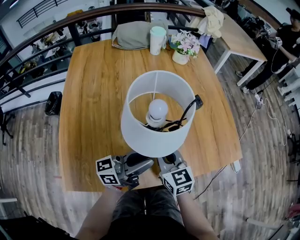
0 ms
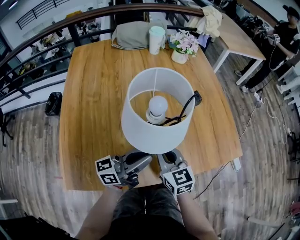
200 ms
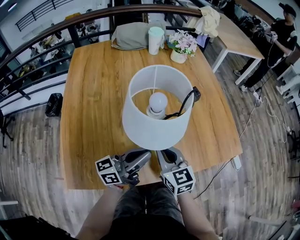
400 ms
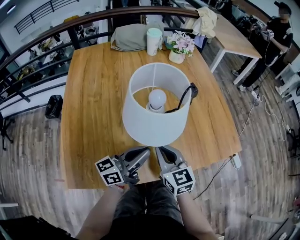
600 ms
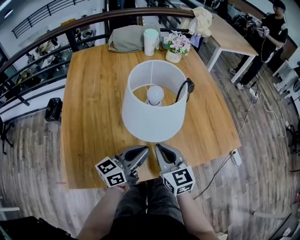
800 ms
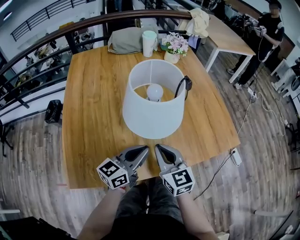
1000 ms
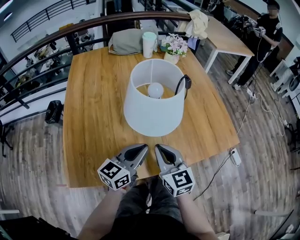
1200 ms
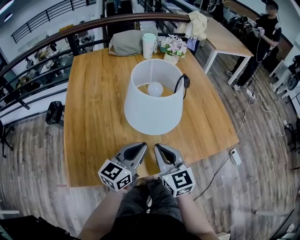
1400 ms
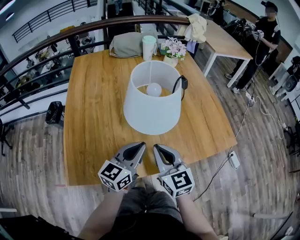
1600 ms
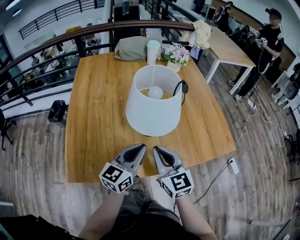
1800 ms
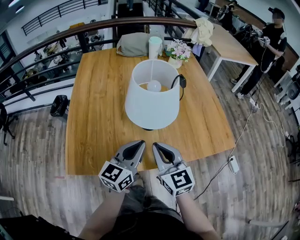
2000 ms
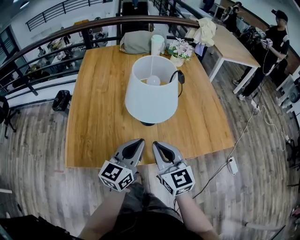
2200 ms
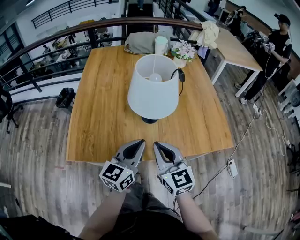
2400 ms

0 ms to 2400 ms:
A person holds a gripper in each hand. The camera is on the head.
0 ms to 1200 ms: The right gripper goes roughly 5 cm backward. Meanwhile the left gripper turns by approximately 40 degrees, and closes.
1200 ms to 2400 ms: The two grippers go some 10 cm backward and upward.

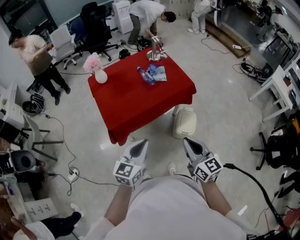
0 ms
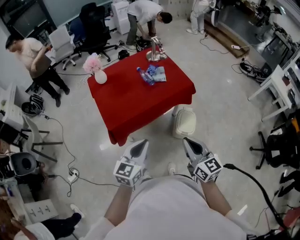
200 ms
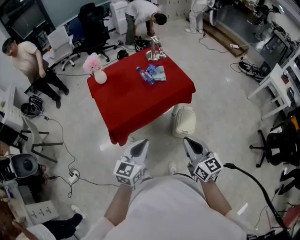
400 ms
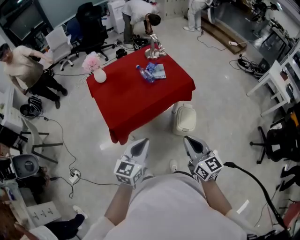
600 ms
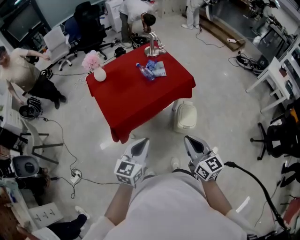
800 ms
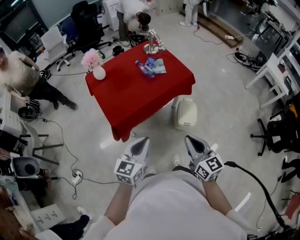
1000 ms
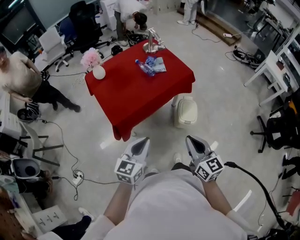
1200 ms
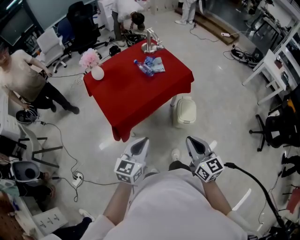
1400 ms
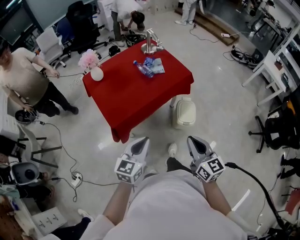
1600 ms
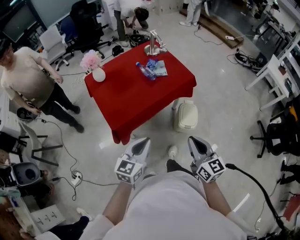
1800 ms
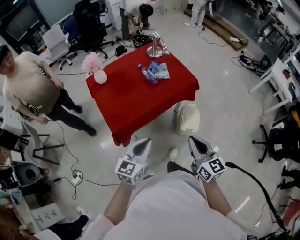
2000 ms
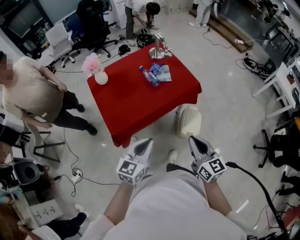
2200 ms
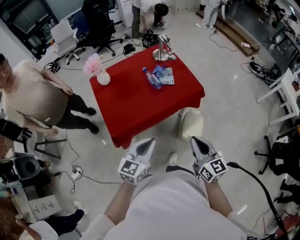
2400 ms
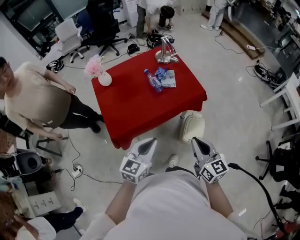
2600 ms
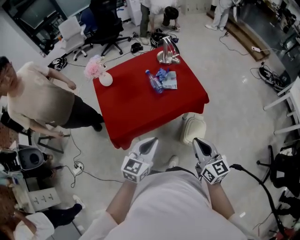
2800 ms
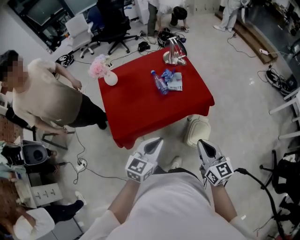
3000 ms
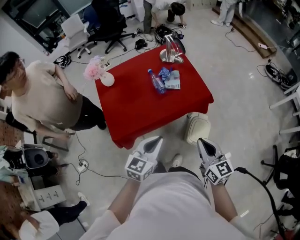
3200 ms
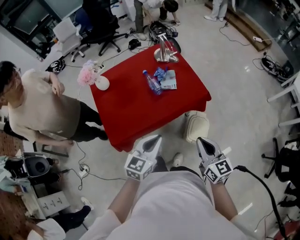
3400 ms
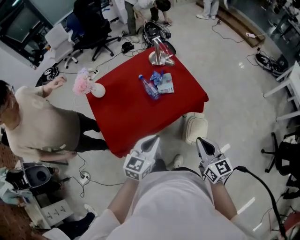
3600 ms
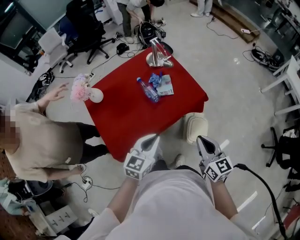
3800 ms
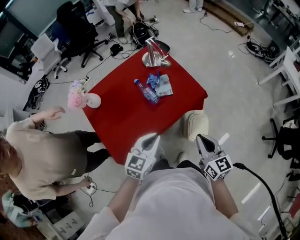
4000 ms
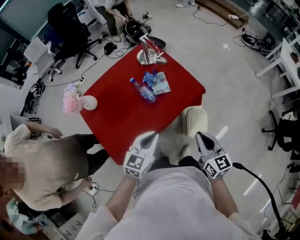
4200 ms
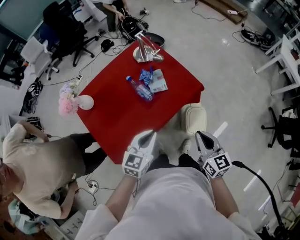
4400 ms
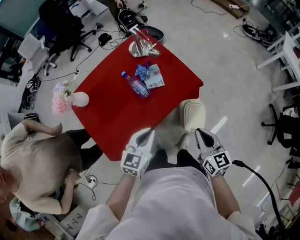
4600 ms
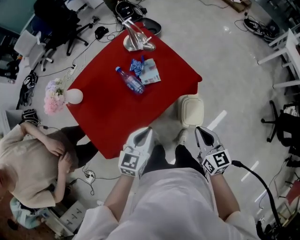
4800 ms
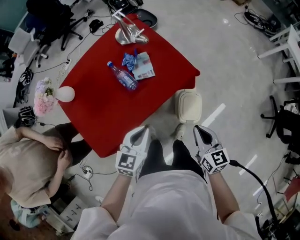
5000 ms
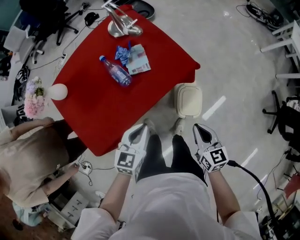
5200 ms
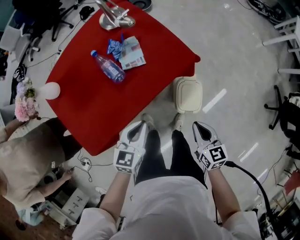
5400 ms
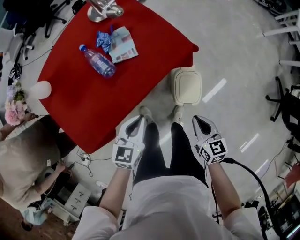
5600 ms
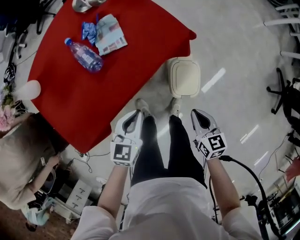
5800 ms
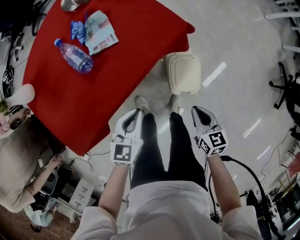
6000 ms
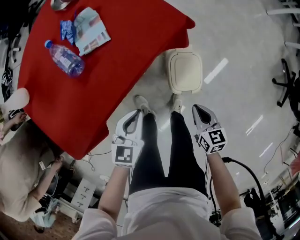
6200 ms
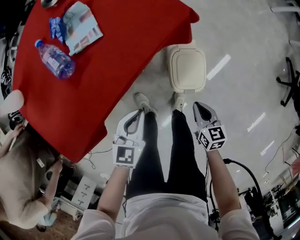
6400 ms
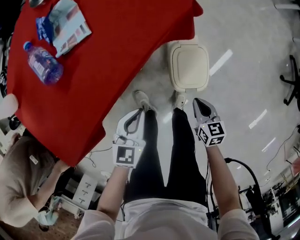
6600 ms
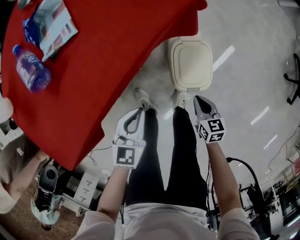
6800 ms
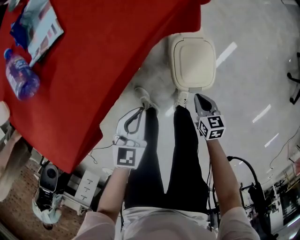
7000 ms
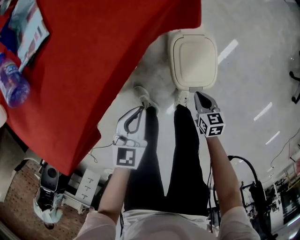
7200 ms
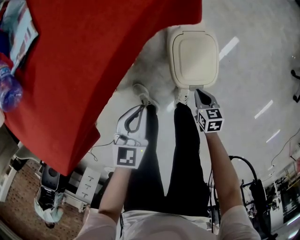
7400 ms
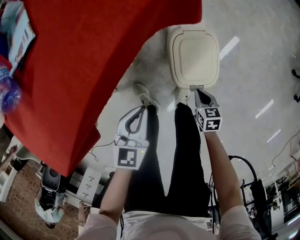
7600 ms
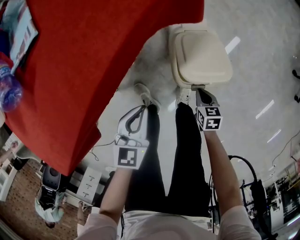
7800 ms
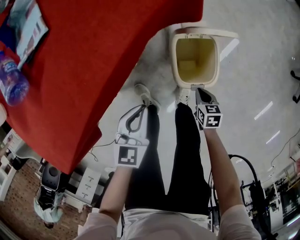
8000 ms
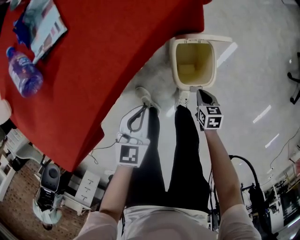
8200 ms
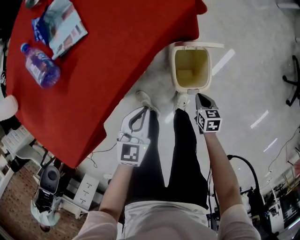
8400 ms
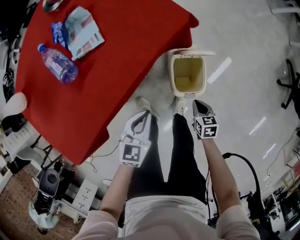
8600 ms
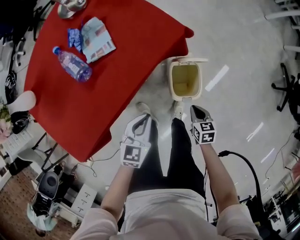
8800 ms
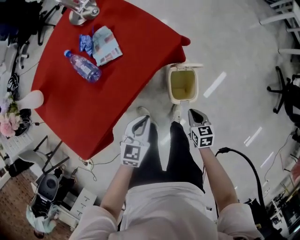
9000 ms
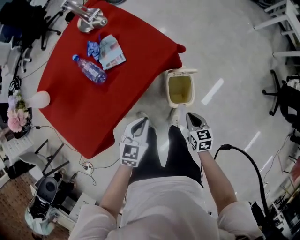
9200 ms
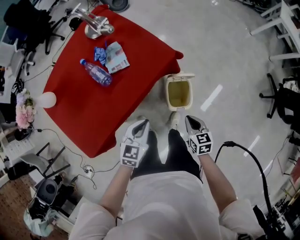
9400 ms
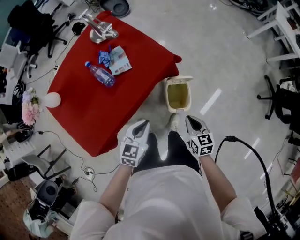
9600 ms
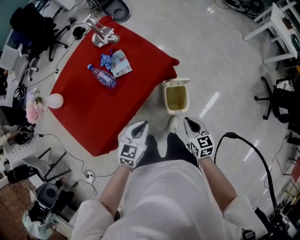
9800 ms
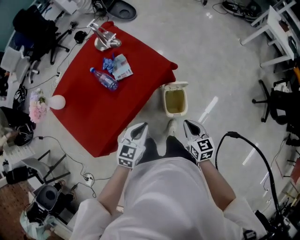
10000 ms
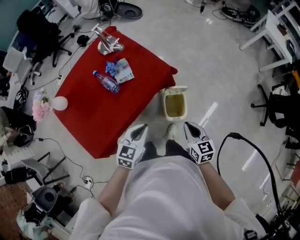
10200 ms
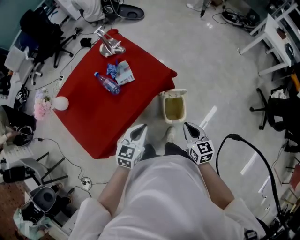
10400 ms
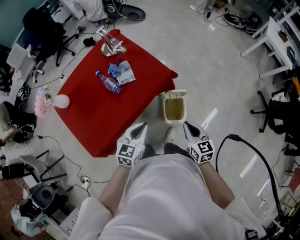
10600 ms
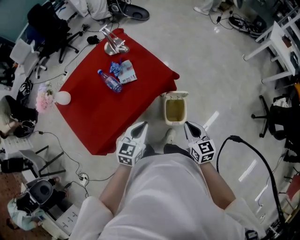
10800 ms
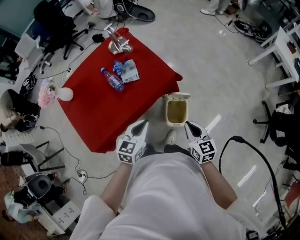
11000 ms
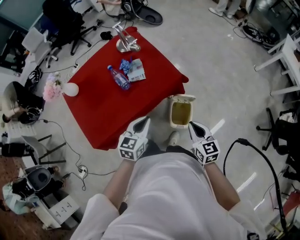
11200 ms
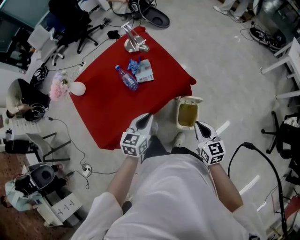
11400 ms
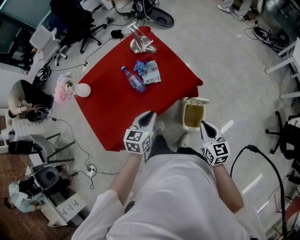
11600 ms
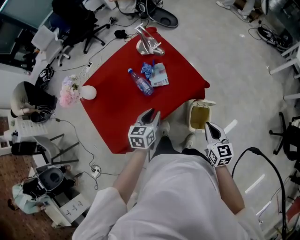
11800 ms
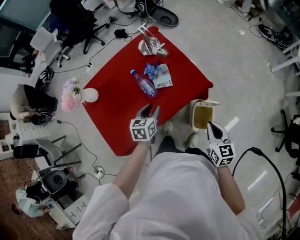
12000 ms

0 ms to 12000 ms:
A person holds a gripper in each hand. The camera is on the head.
0 ms to 1600 ms: The right gripper ends up approximately 5 cm from where it was. Meanwhile the left gripper heads to the left, covering roughly 5 cm.
1600 ms to 3000 ms: The two grippers go about 20 cm forward and to the right.
3000 ms to 4400 ms: The right gripper goes some 10 cm forward, and rotates about 20 degrees, while the left gripper is displaced forward by about 15 cm.
4400 ms to 6000 ms: Both grippers move downward and to the right, some 30 cm. The right gripper swivels some 20 degrees.
6000 ms to 7600 ms: The right gripper heads downward, covering roughly 35 cm, and changes its angle by about 20 degrees. Meanwhile the left gripper heads downward, covering roughly 20 cm.
7600 ms to 9000 ms: The two grippers go approximately 20 cm upward.
9000 ms to 10400 ms: Both grippers move upward, roughly 25 cm. The right gripper swivels about 20 degrees.
10400 ms to 12000 ms: The right gripper travels forward and to the left by roughly 10 cm; the left gripper is displaced forward and to the left by approximately 20 cm, changes its angle by roughly 30 degrees, and opens up.

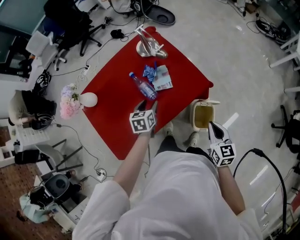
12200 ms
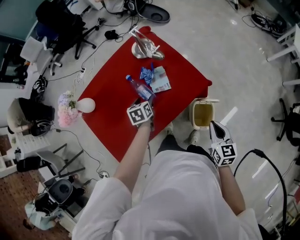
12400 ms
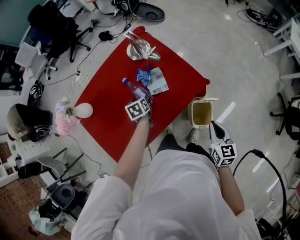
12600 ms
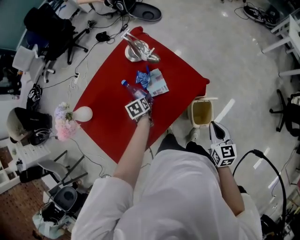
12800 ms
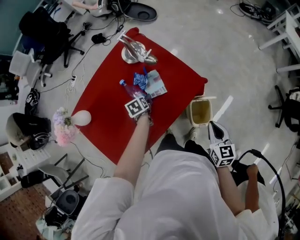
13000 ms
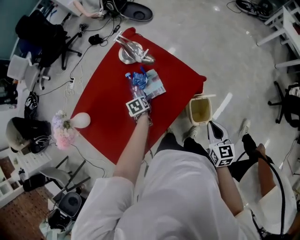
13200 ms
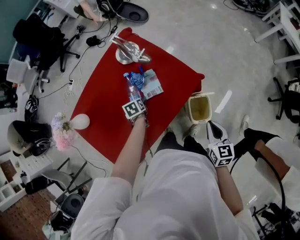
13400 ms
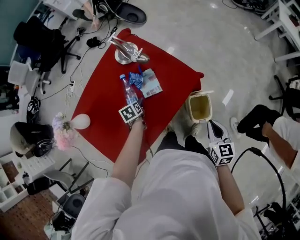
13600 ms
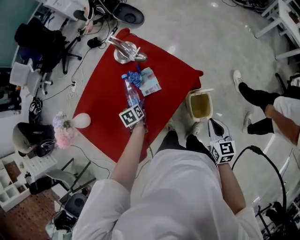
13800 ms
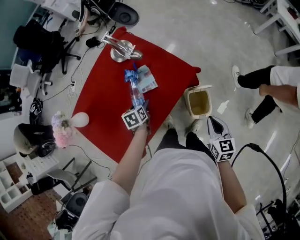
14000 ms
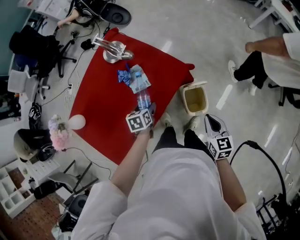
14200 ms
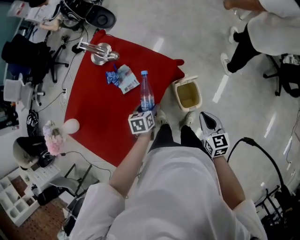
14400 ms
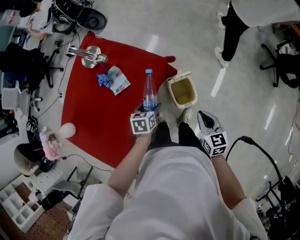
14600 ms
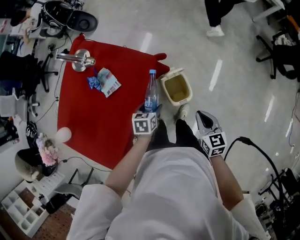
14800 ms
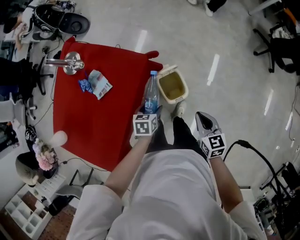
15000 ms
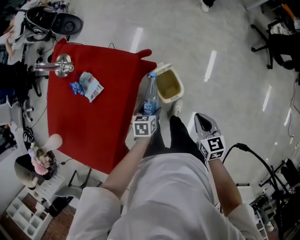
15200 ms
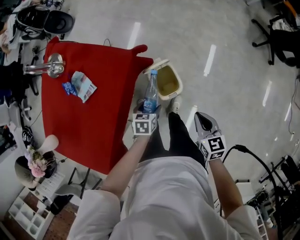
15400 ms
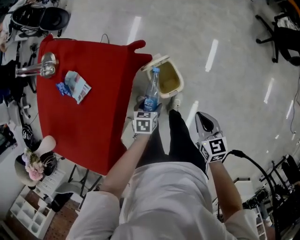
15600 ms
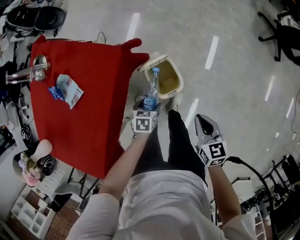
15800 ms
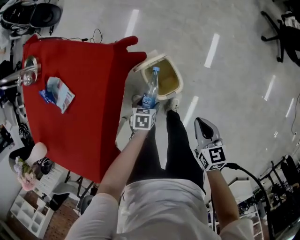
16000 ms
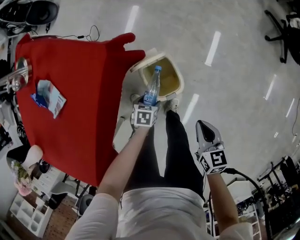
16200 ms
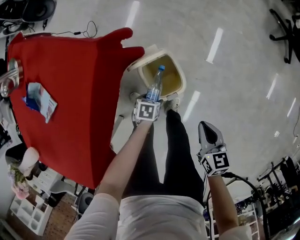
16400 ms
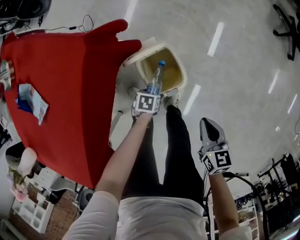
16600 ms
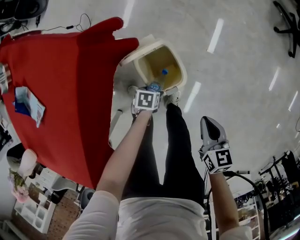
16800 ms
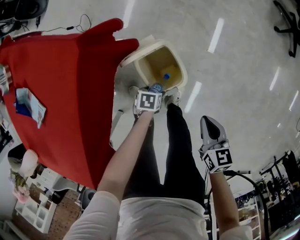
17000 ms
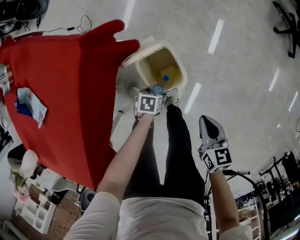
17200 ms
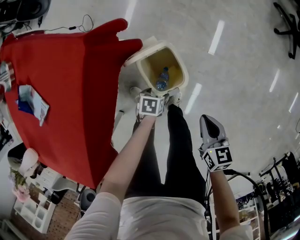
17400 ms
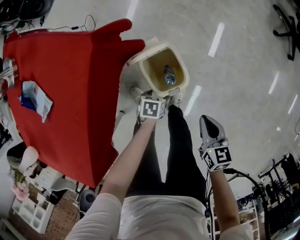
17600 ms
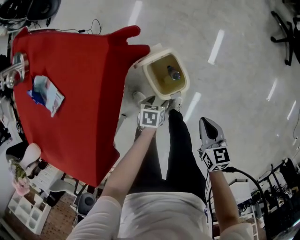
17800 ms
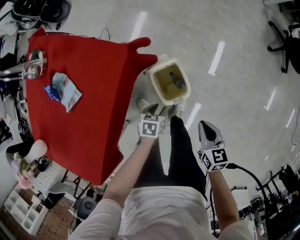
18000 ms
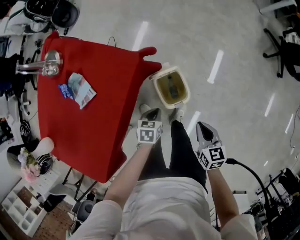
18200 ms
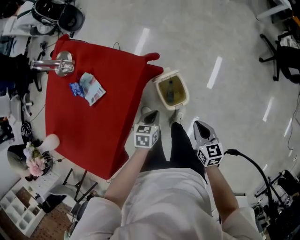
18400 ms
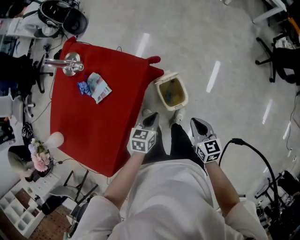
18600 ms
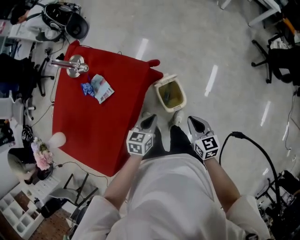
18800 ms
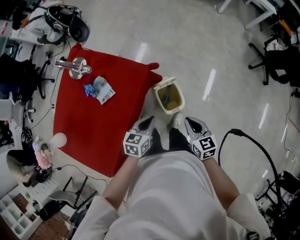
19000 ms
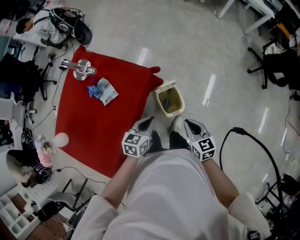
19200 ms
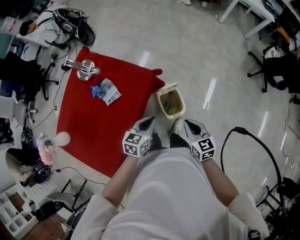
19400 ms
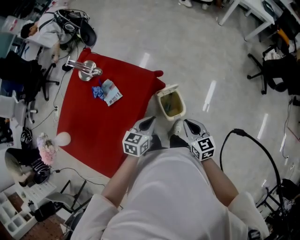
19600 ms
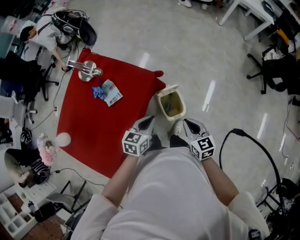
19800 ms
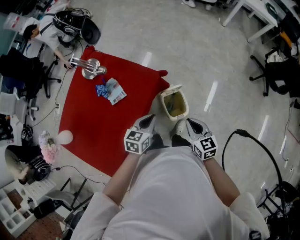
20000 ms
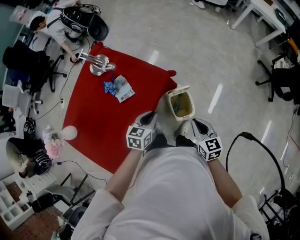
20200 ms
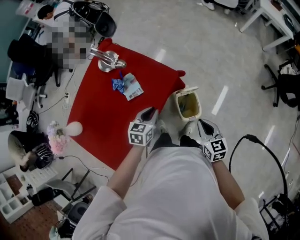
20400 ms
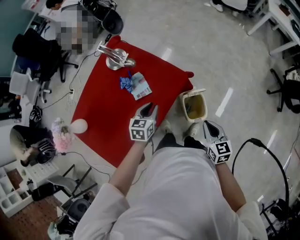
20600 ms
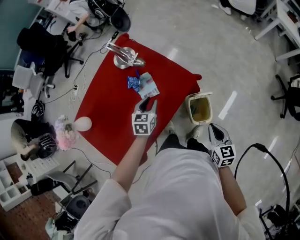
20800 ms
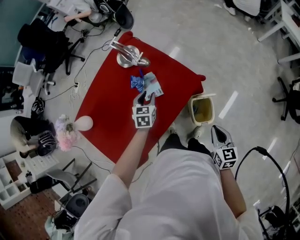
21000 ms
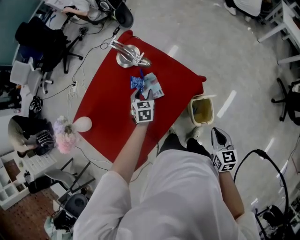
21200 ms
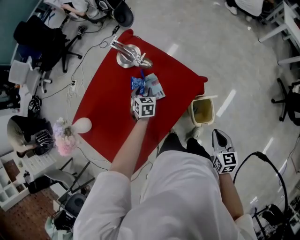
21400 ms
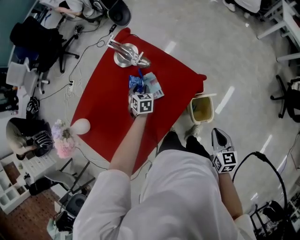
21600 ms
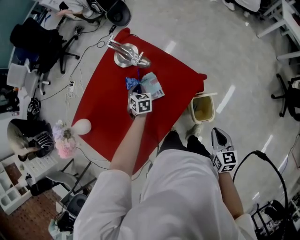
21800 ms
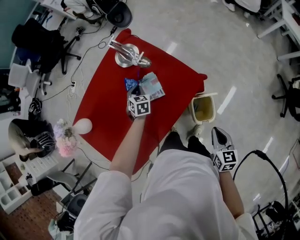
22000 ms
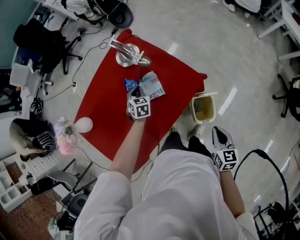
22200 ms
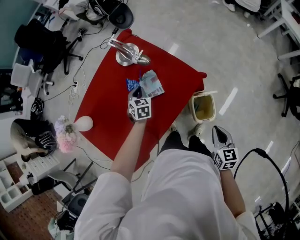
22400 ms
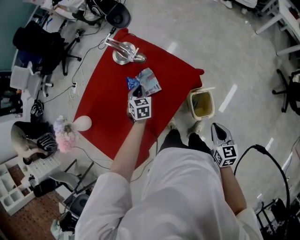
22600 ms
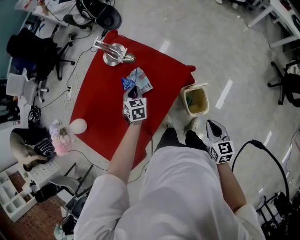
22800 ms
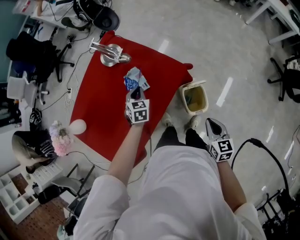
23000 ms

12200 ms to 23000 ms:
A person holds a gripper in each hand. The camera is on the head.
12200 ms to 13800 ms: The left gripper moves downward and forward, approximately 10 cm.
13800 ms to 15200 ms: The right gripper ends up roughly 20 cm from where it was; the left gripper moves about 40 cm, and changes its angle by roughly 40 degrees.
15200 ms to 16800 ms: Both grippers travel together downward, some 30 cm. The left gripper turns by some 30 degrees.
16800 ms to 18400 ms: The left gripper goes some 30 cm upward, swivels about 30 degrees, and closes its fingers. The right gripper travels upward by some 15 cm.
18400 ms to 20000 ms: The right gripper is displaced upward and to the left by about 15 cm. Meanwhile the left gripper is displaced upward by about 20 cm.
20000 ms to 21400 ms: The left gripper is displaced to the left, forward and downward by roughly 35 cm, swivels some 40 degrees, and opens its fingers; the right gripper travels to the left by about 5 cm.
21400 ms to 23000 ms: The right gripper ends up about 5 cm from where it was. Meanwhile the left gripper travels backward, upward and to the right by some 10 cm, and closes up.
